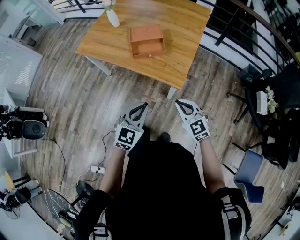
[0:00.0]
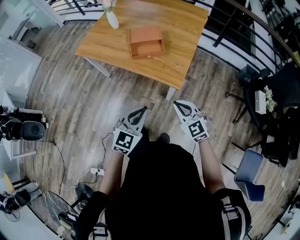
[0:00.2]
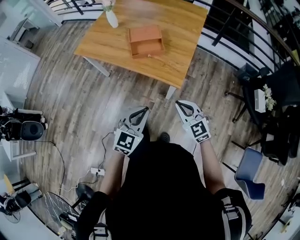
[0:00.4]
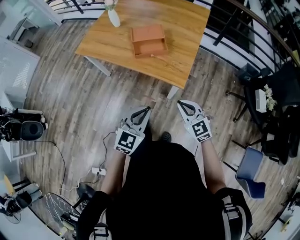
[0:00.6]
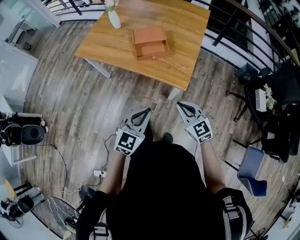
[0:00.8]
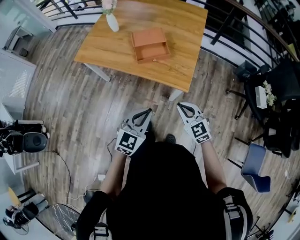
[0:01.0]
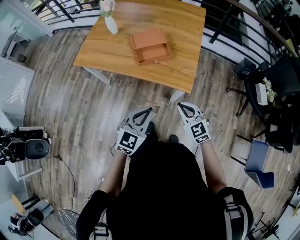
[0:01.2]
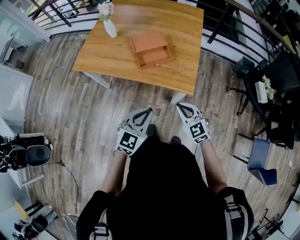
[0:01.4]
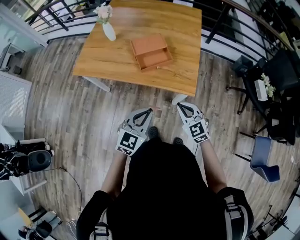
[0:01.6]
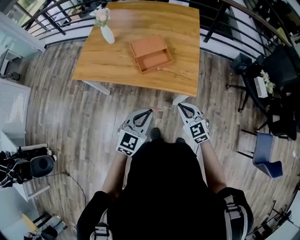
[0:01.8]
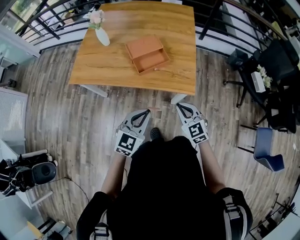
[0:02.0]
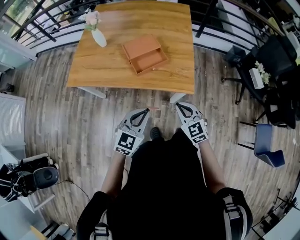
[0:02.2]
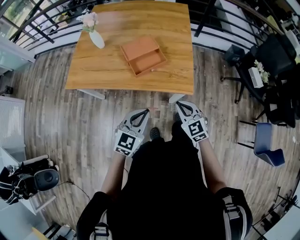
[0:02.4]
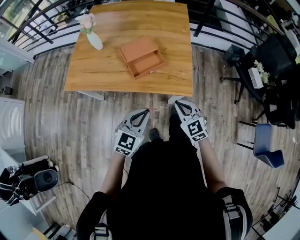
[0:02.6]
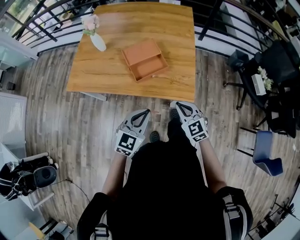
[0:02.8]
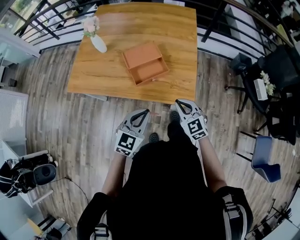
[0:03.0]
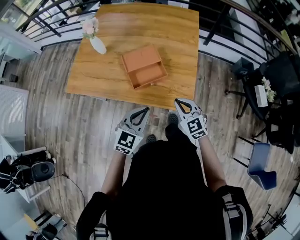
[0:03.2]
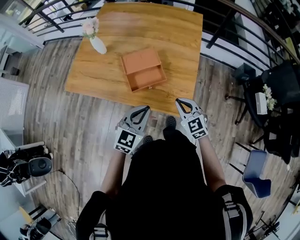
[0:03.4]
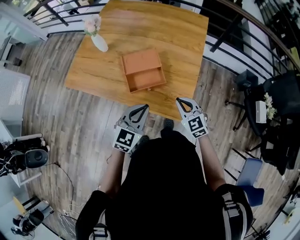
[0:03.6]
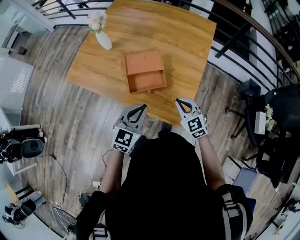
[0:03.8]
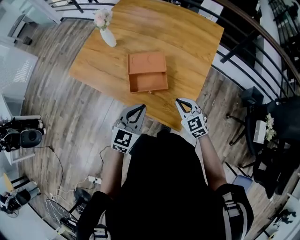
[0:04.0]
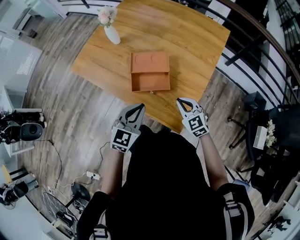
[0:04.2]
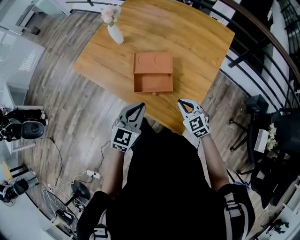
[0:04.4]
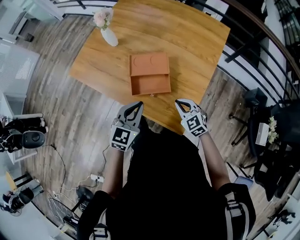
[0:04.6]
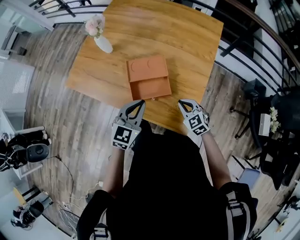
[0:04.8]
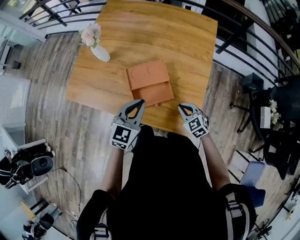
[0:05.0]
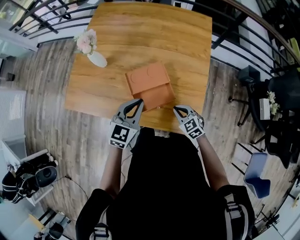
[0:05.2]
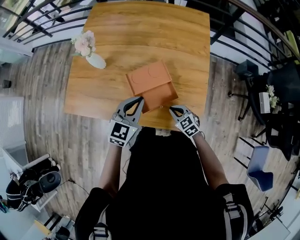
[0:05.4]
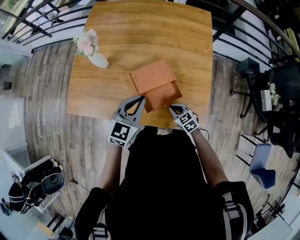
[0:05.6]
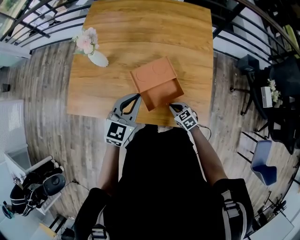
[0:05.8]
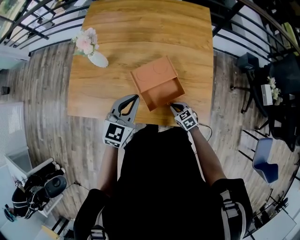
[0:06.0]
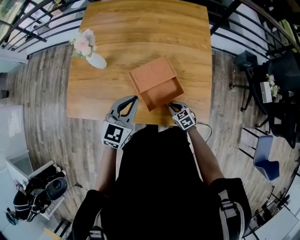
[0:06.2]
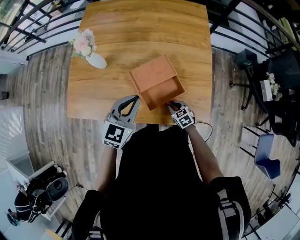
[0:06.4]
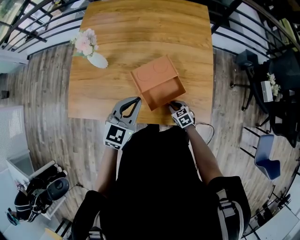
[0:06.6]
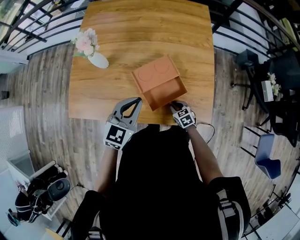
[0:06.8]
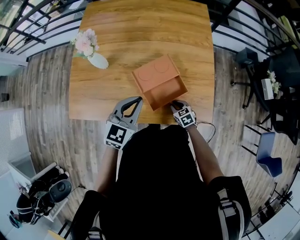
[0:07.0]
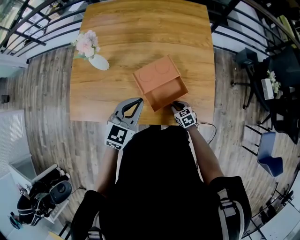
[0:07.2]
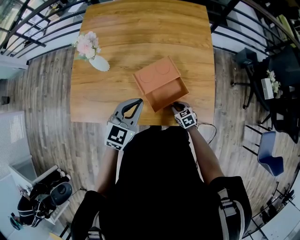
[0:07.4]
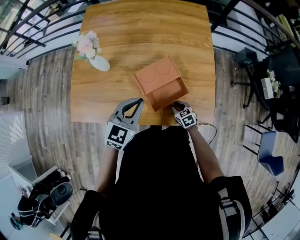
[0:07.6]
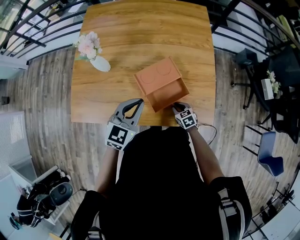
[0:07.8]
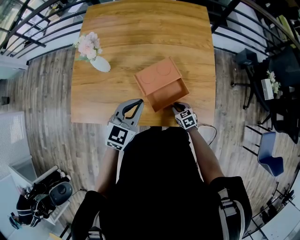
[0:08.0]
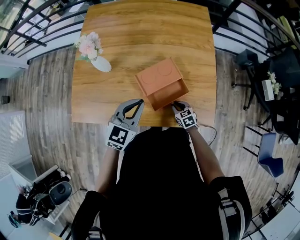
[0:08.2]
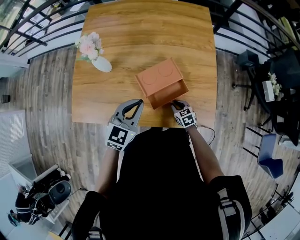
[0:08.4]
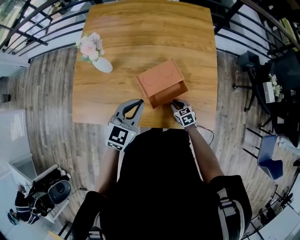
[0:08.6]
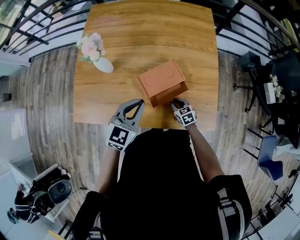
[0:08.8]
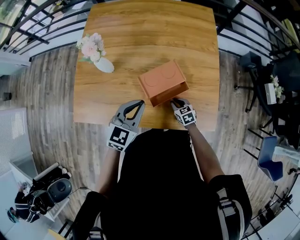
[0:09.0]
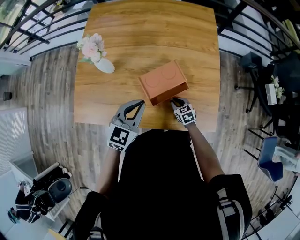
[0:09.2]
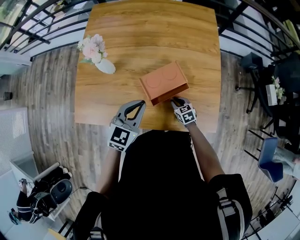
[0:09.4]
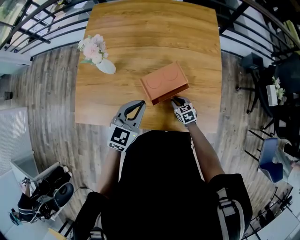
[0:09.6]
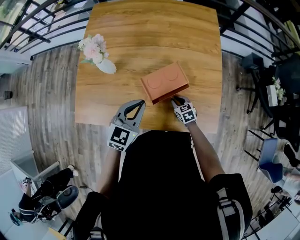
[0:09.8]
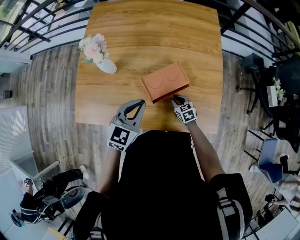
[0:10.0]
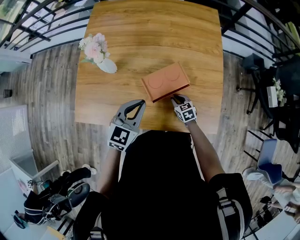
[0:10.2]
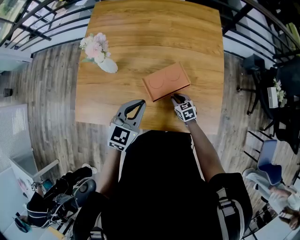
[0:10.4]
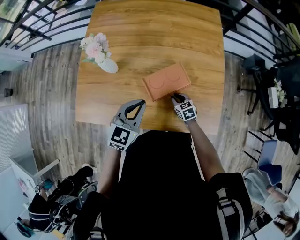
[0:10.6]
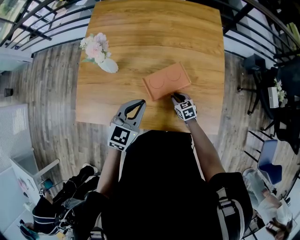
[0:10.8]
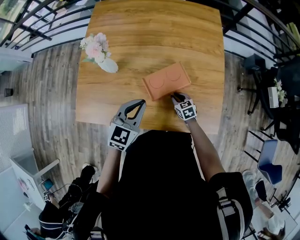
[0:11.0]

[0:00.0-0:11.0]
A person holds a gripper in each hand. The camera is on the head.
0:00.0 to 0:01.6: The right gripper shifts roughly 15 cm to the left; the left gripper goes some 15 cm to the left and forward.
0:01.6 to 0:03.2: Both grippers move forward, approximately 20 cm.
0:03.2 to 0:04.8: The right gripper heads forward and downward, covering some 20 cm. Meanwhile the left gripper is displaced forward by roughly 20 cm.
0:04.8 to 0:06.2: The right gripper moves to the left and downward, some 20 cm, and rotates some 30 degrees; the left gripper heads to the left and forward, covering about 20 cm.
0:06.2 to 0:07.8: The grippers move only a little.
0:07.8 to 0:09.4: The right gripper goes roughly 10 cm forward.
0:09.4 to 0:11.0: There are only small adjustments of the grippers.

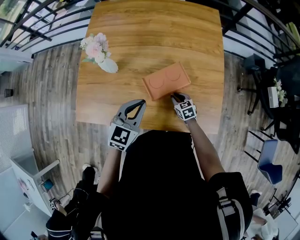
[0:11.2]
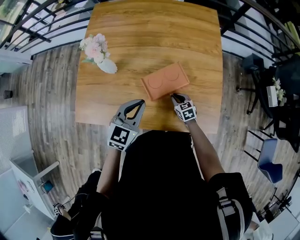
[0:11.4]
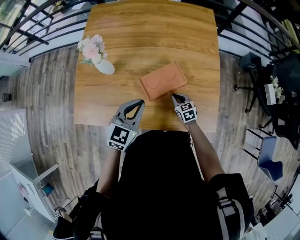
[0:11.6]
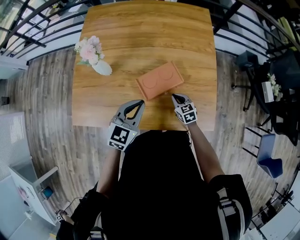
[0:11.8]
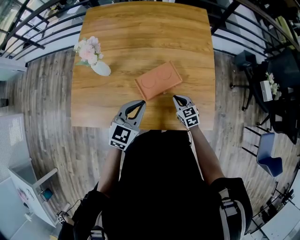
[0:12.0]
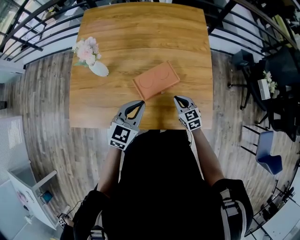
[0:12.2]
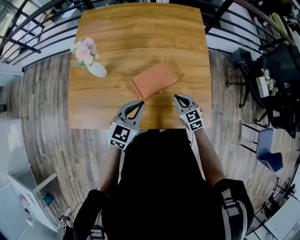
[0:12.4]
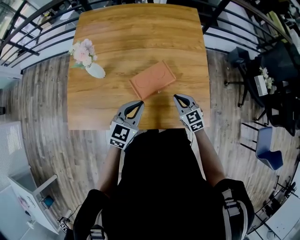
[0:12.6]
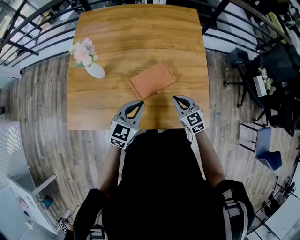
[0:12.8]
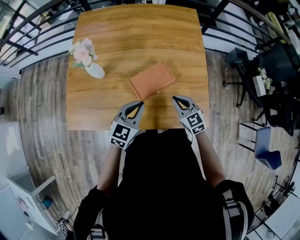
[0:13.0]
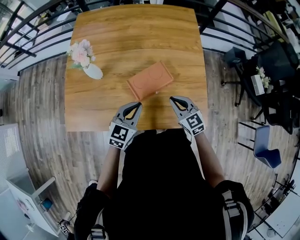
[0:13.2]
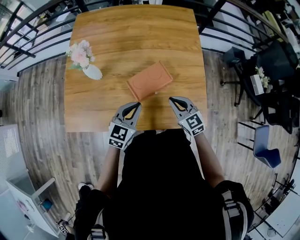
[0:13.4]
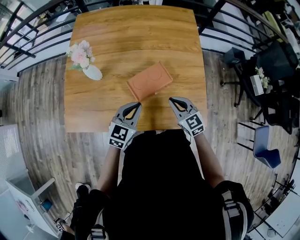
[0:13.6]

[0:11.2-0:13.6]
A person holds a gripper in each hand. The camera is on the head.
0:11.2 to 0:12.4: The right gripper heads upward, covering approximately 15 cm.
0:12.4 to 0:13.6: The right gripper is displaced upward by some 5 cm.

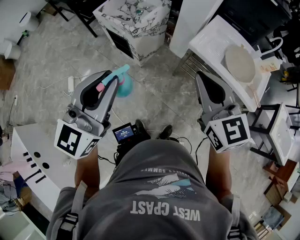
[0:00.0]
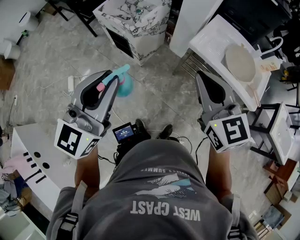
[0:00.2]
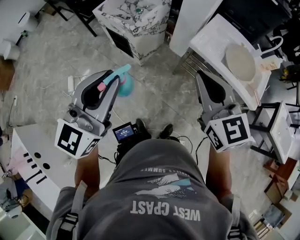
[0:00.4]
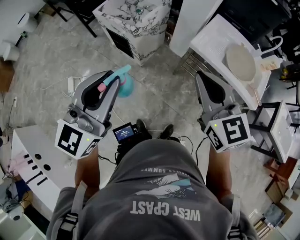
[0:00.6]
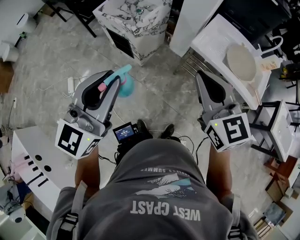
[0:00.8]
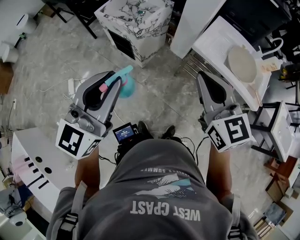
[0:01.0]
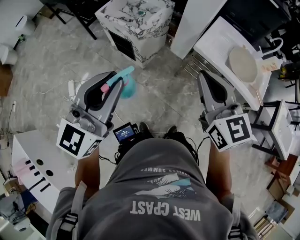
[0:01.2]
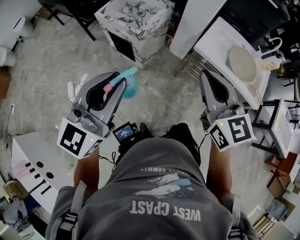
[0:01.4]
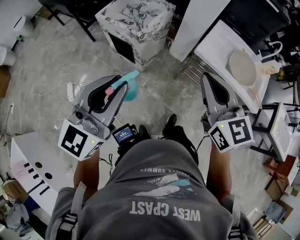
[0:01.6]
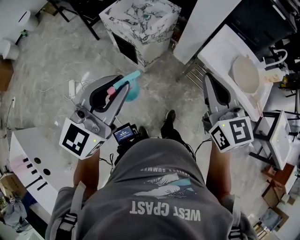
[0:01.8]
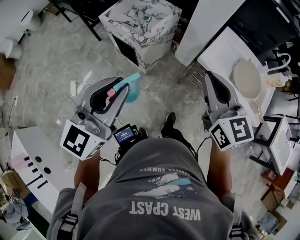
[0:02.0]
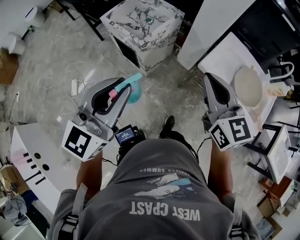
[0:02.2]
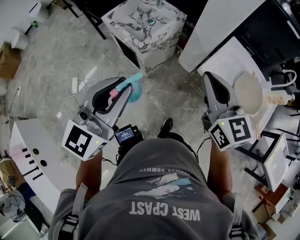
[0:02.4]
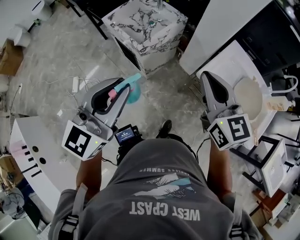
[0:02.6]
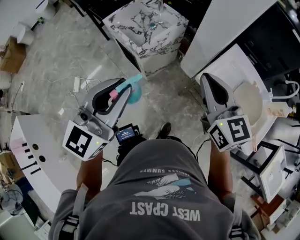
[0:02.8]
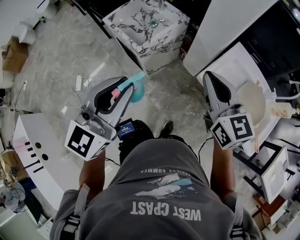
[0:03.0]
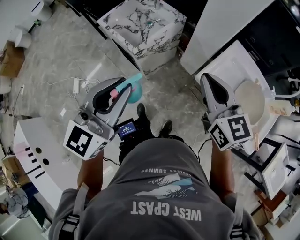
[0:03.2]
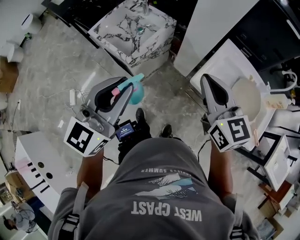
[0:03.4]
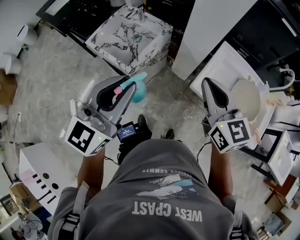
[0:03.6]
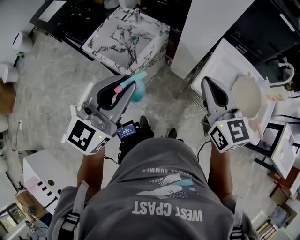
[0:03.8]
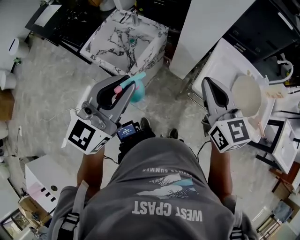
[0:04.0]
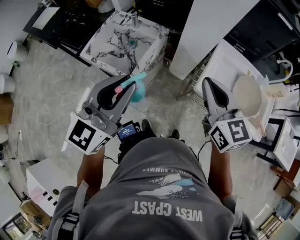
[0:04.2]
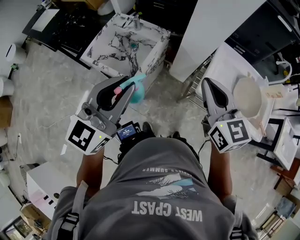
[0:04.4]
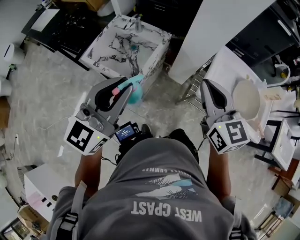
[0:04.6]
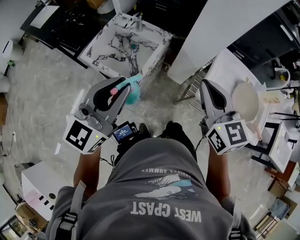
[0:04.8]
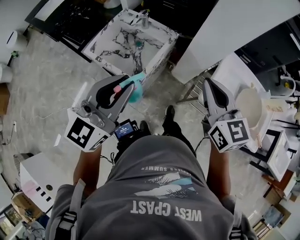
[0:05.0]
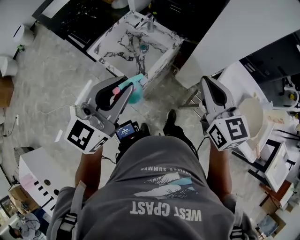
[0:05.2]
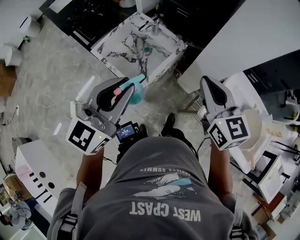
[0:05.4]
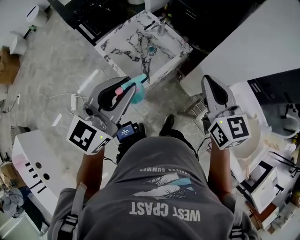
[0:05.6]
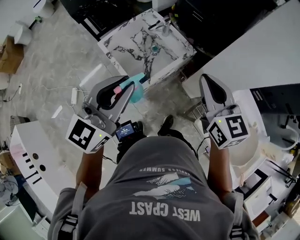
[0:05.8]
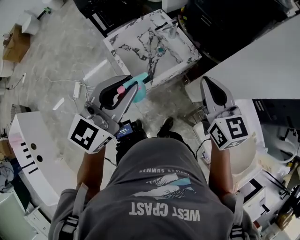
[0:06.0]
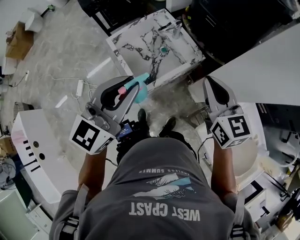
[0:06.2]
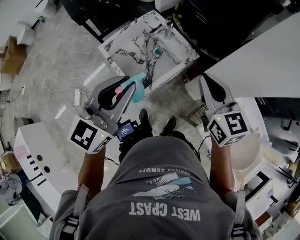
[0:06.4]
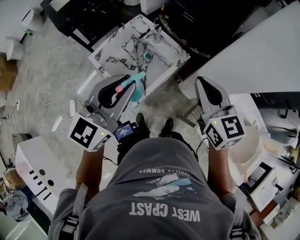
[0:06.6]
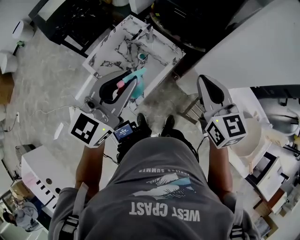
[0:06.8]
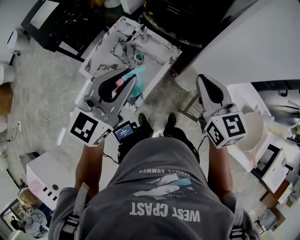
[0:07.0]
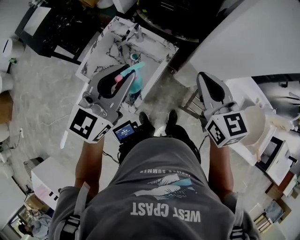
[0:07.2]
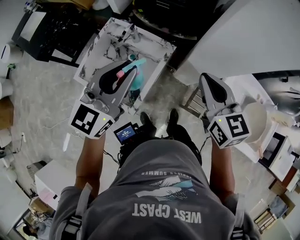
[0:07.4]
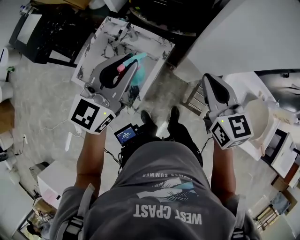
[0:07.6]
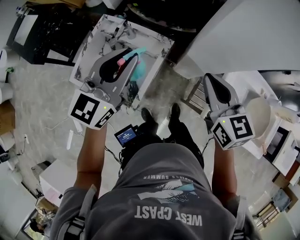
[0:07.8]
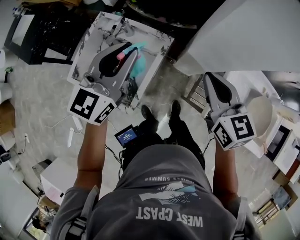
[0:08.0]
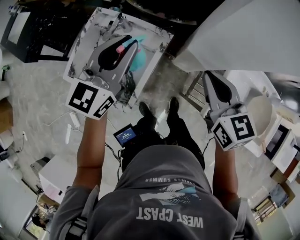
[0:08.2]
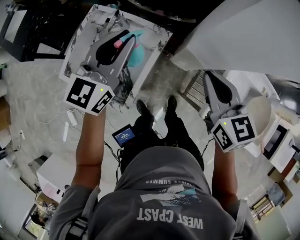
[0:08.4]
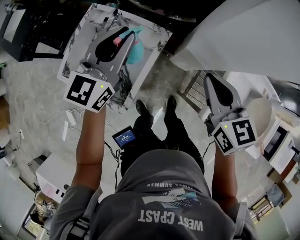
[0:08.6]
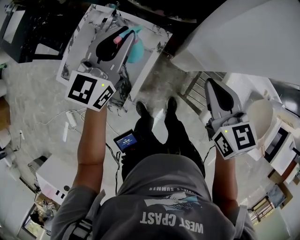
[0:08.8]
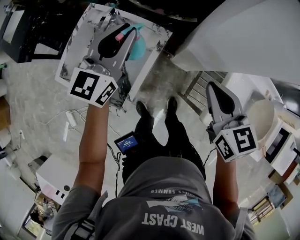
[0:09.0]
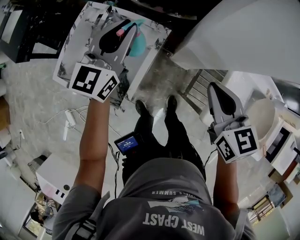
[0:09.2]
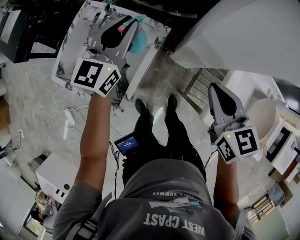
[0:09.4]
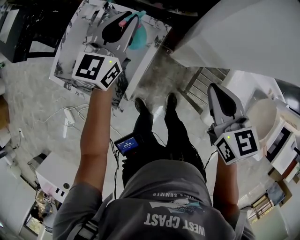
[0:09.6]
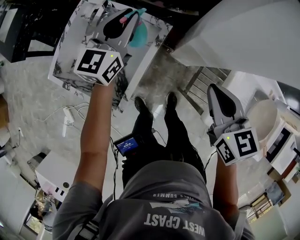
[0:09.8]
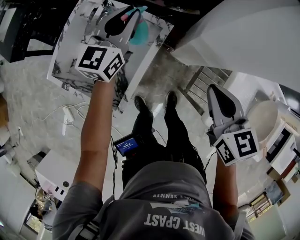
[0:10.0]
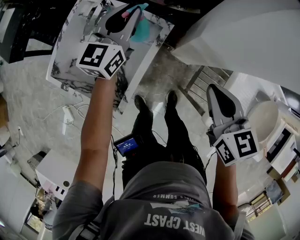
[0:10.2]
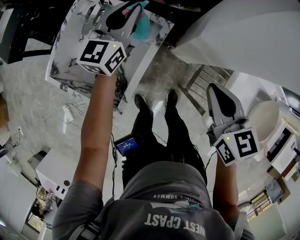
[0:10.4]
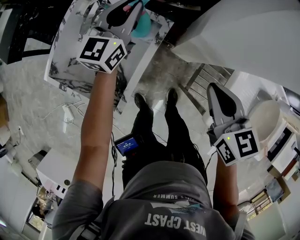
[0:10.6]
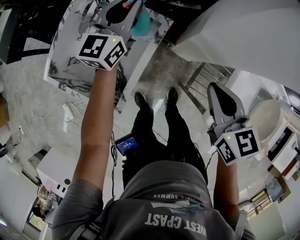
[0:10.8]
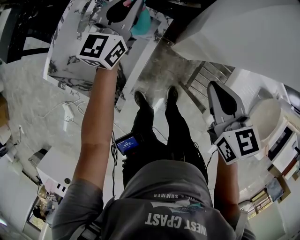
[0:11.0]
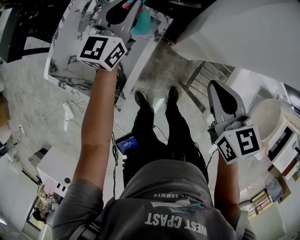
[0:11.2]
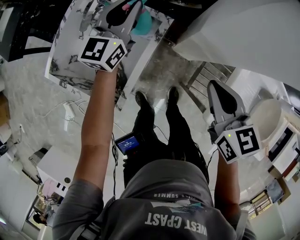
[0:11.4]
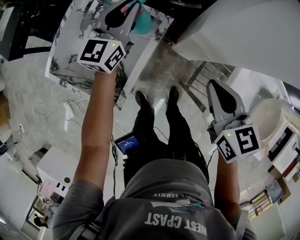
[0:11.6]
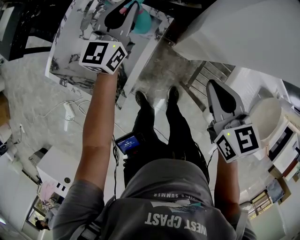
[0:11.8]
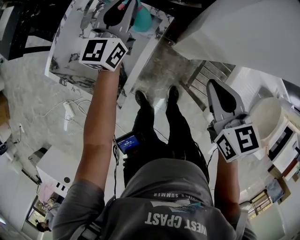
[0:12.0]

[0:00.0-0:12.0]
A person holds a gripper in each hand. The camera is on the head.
0:00.0 to 0:01.6: Both grippers move to the left, roughly 5 cm.
0:01.6 to 0:03.0: Both grippers travel together forward and to the right, some 20 cm.
0:03.0 to 0:04.4: The right gripper moves forward and to the left, approximately 10 cm, while the left gripper shifts roughly 20 cm forward and to the left, and swivels approximately 20 degrees.
0:04.4 to 0:06.0: The right gripper moves approximately 20 cm, and rotates some 30 degrees, while the left gripper moves some 10 cm, and turns by roughly 30 degrees.
0:06.0 to 0:07.6: The right gripper moves roughly 10 cm, and swivels roughly 30 degrees. The left gripper changes place by roughly 20 cm, and swivels approximately 20 degrees.
0:07.6 to 0:09.0: The right gripper shifts about 10 cm downward. The left gripper heads downward and forward, covering some 15 cm.
0:09.0 to 0:10.4: The left gripper is displaced downward and forward by approximately 15 cm, while the right gripper travels downward by about 5 cm.
0:10.4 to 0:12.0: The grippers stay close to where they were, moving slightly.
